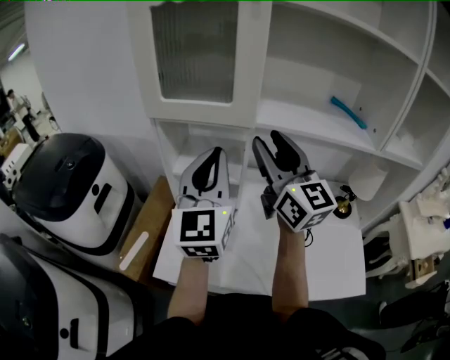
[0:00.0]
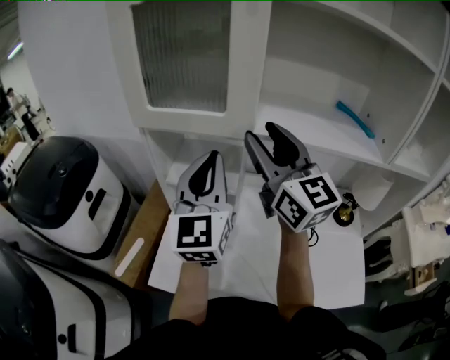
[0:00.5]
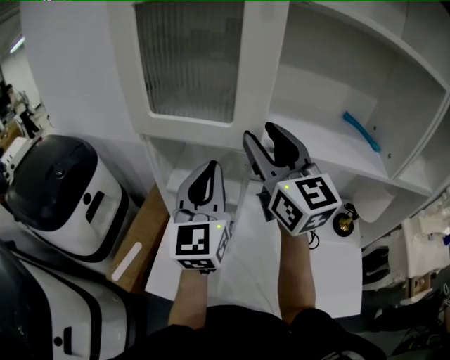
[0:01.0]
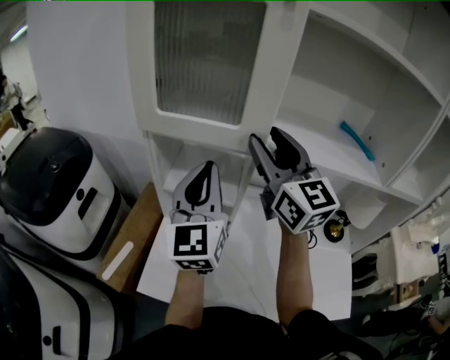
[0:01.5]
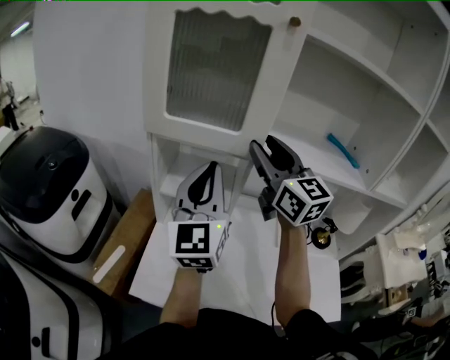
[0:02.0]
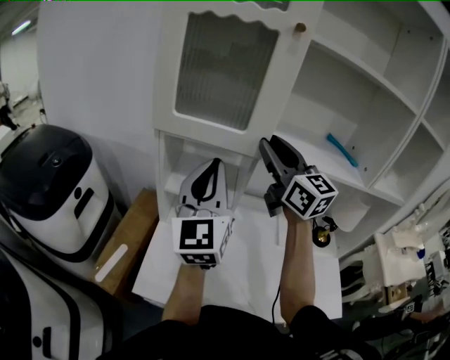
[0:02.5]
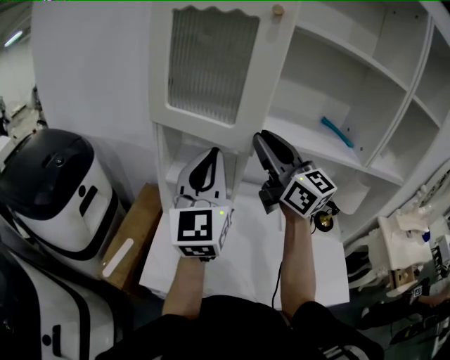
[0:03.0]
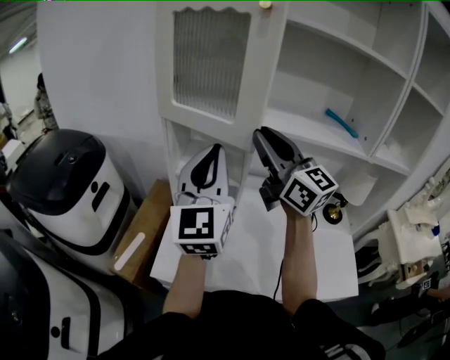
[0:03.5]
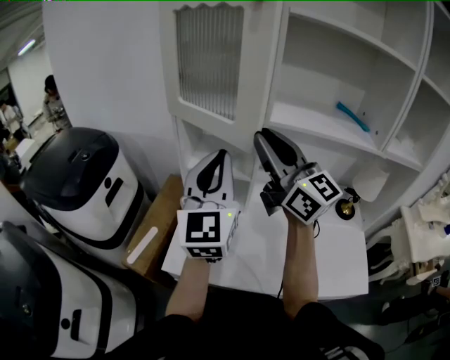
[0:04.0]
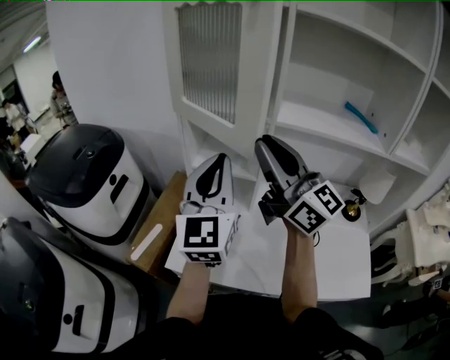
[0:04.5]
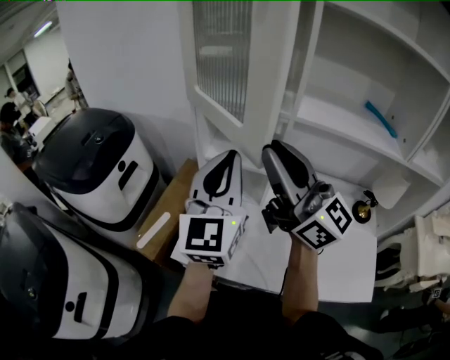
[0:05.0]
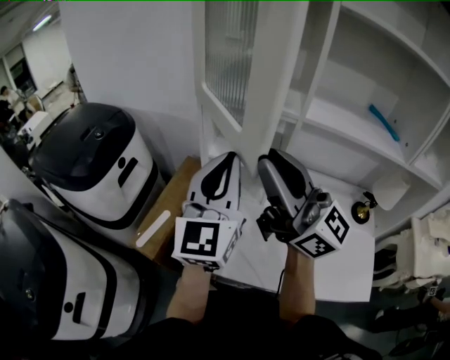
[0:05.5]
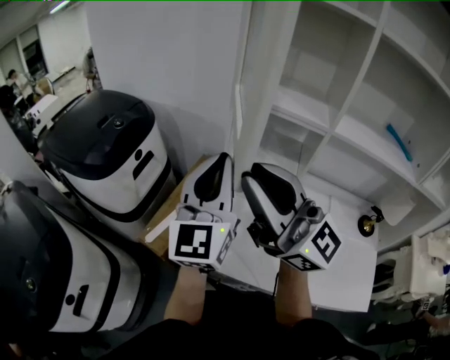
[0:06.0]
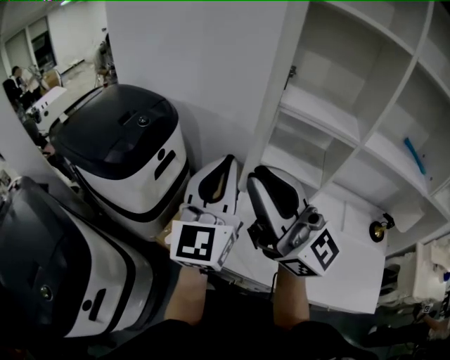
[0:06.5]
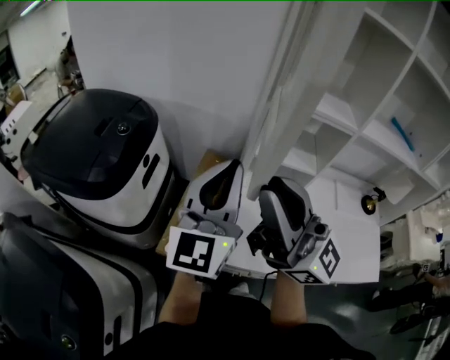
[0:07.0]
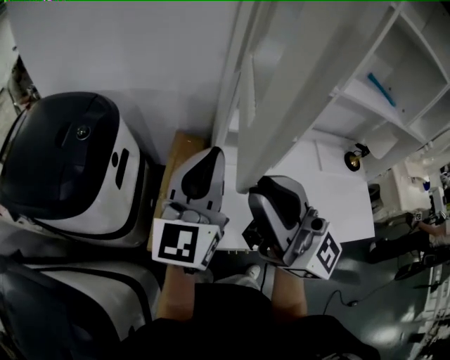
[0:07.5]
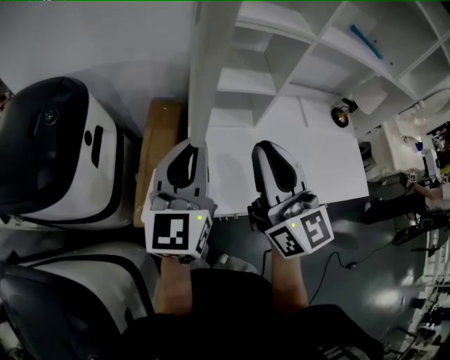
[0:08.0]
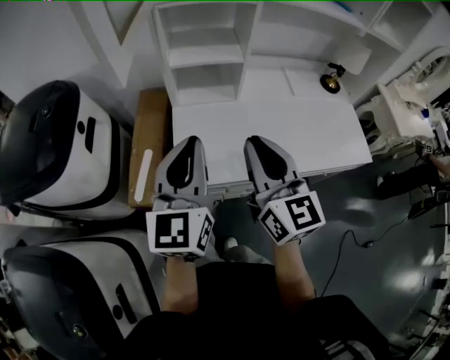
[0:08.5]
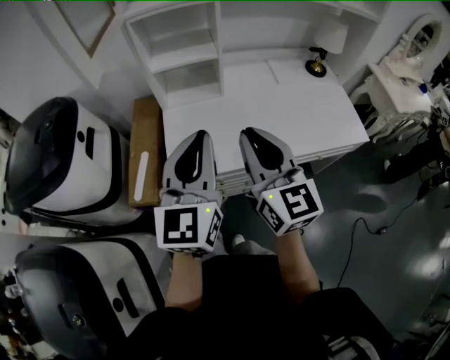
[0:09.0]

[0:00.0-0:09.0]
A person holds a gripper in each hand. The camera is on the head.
0:00.0 to 0:02.0: The right gripper travels forward by roughly 10 cm.
0:02.0 to 0:04.5: The left gripper is displaced backward by roughly 10 cm, while the right gripper goes some 15 cm backward and to the left, swivels some 30 degrees, and closes.
0:04.5 to 0:07.0: Both grippers travel together to the left, approximately 25 cm.
0:07.0 to 0:09.0: The left gripper moves about 30 cm; the right gripper changes place by roughly 30 cm, and angles its fingers downward, by roughly 30 degrees.

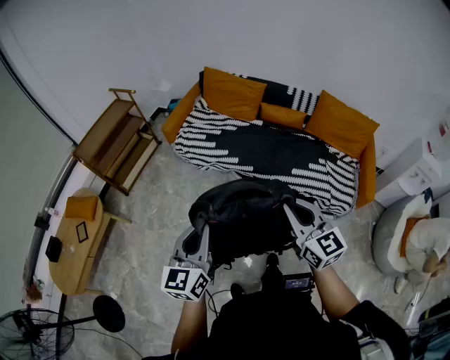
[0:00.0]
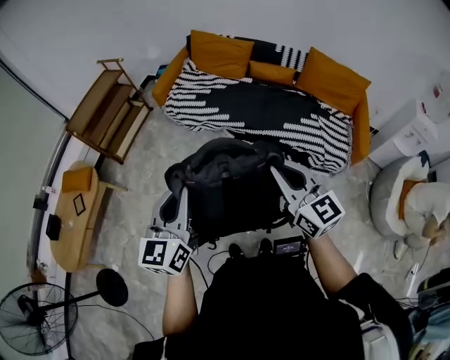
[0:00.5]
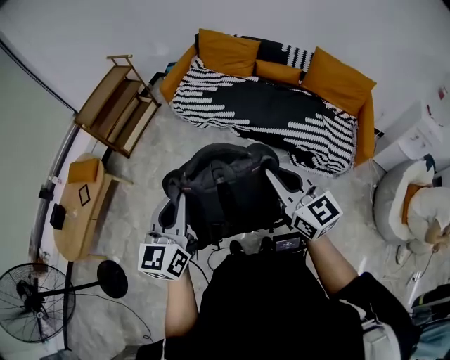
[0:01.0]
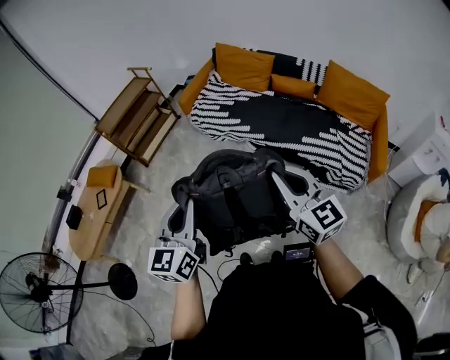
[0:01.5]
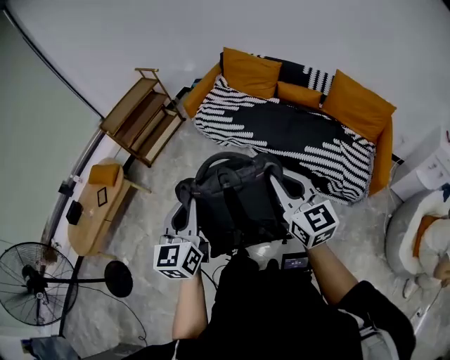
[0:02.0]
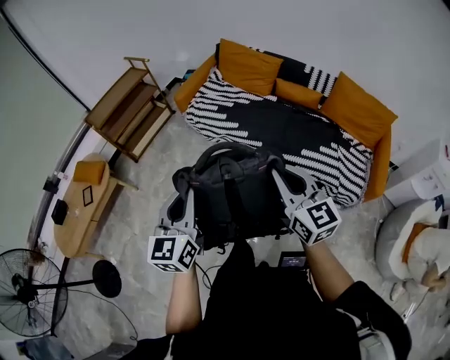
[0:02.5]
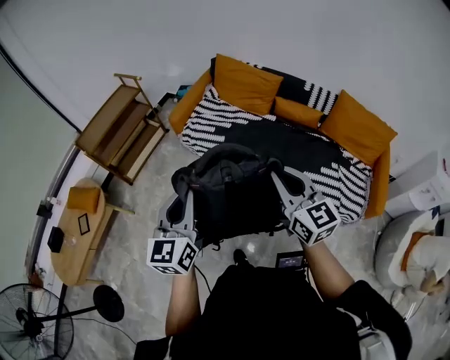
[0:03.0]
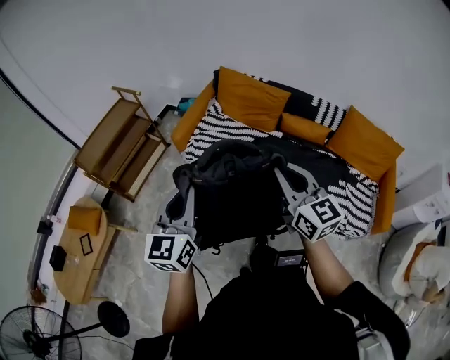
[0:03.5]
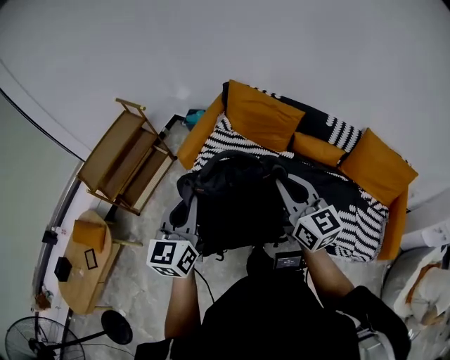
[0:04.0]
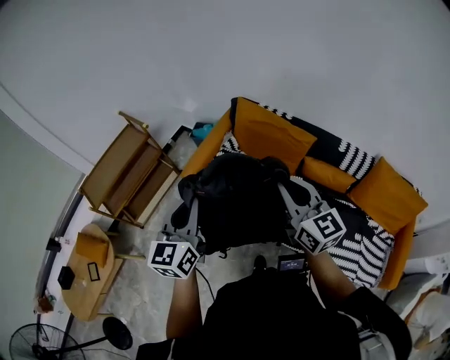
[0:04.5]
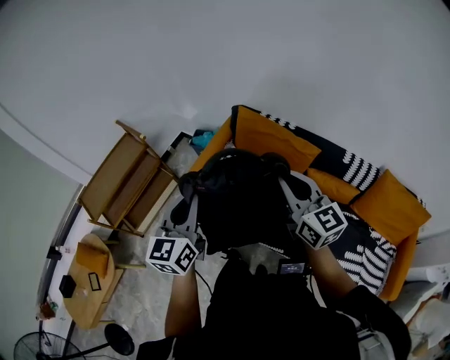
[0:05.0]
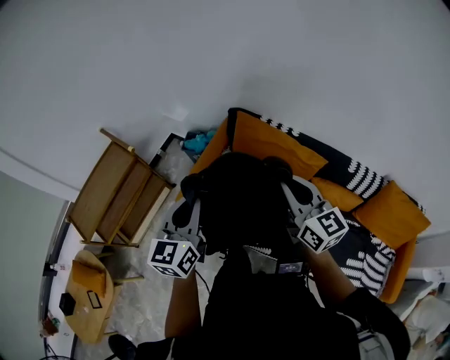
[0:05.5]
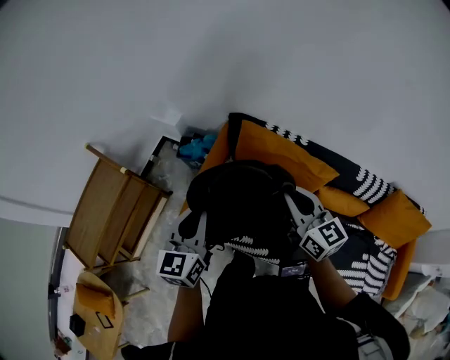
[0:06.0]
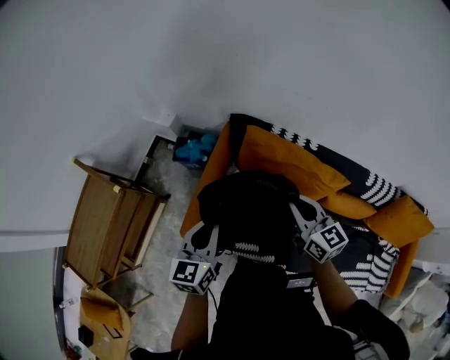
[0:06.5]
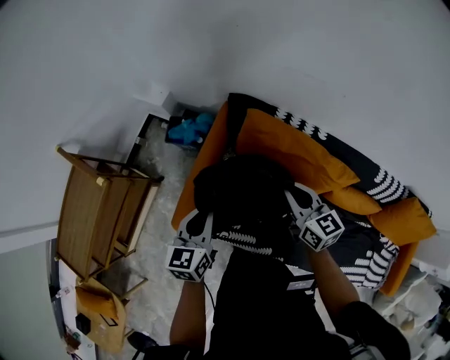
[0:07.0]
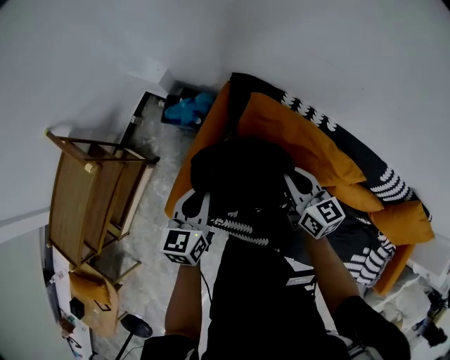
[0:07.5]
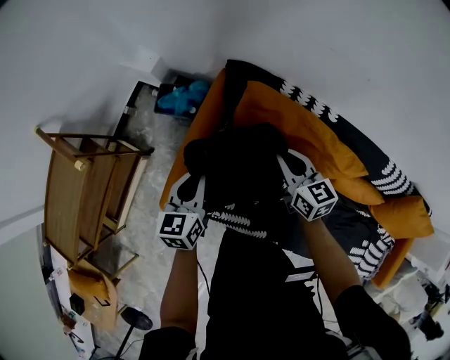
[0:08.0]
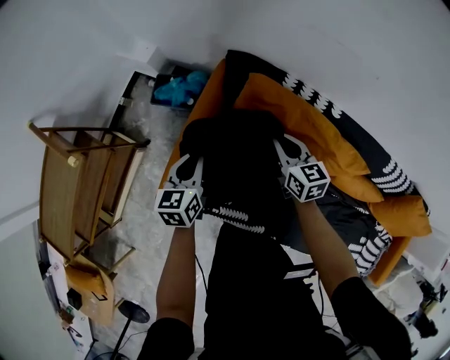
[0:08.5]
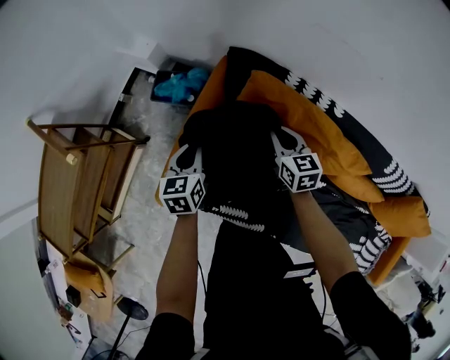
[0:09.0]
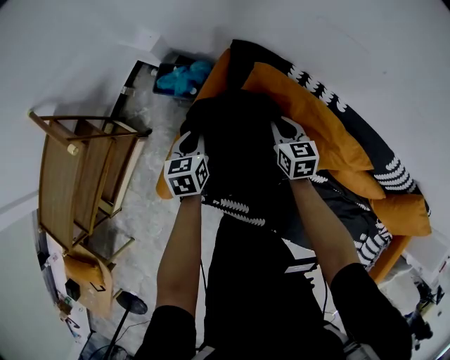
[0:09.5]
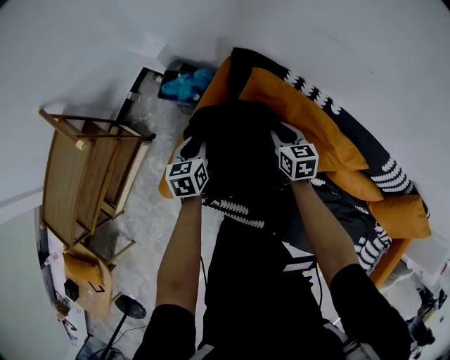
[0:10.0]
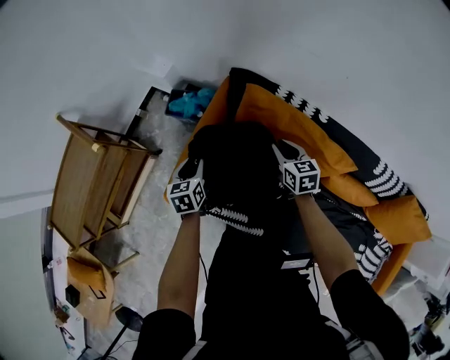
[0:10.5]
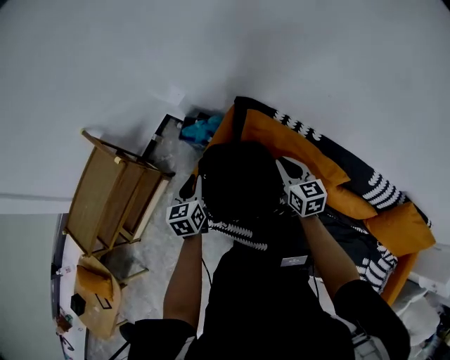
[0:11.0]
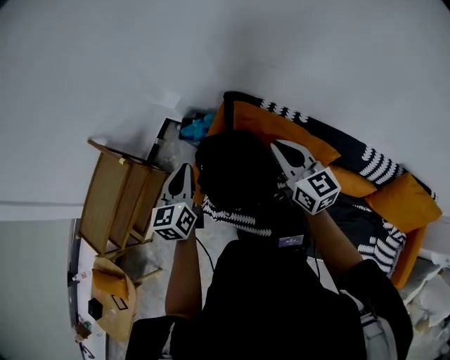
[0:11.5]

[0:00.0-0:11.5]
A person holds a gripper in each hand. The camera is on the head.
0:00.0 to 0:02.0: The left gripper shifts roughly 5 cm backward.
0:02.0 to 0:04.0: Both grippers are carried forward, about 50 cm.
0:04.0 to 0:06.0: Both grippers are carried forward, some 40 cm.
0:06.0 to 0:07.5: Both grippers move downward and forward, approximately 25 cm.
0:07.5 to 0:09.5: Both grippers travel together downward and forward, about 15 cm. The right gripper swivels some 20 degrees.
0:09.5 to 0:11.5: Both grippers move upward, about 35 cm. The left gripper swivels about 30 degrees, and opens and closes again; the right gripper tilts its fingers about 30 degrees upward.

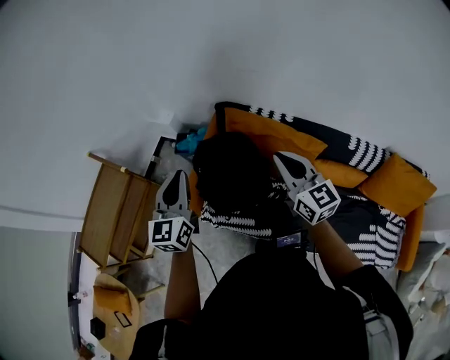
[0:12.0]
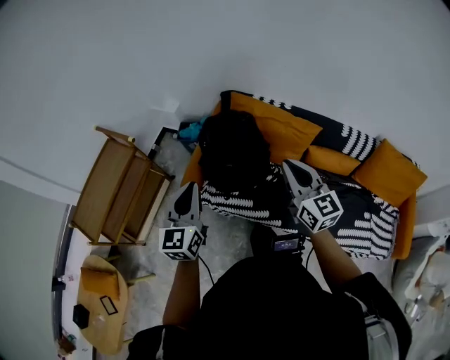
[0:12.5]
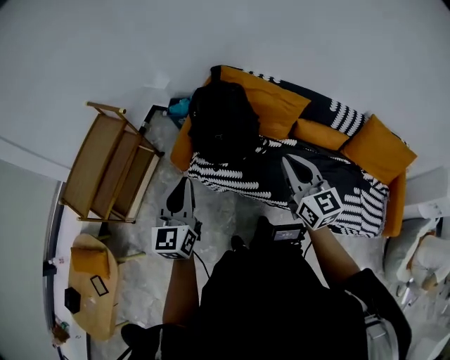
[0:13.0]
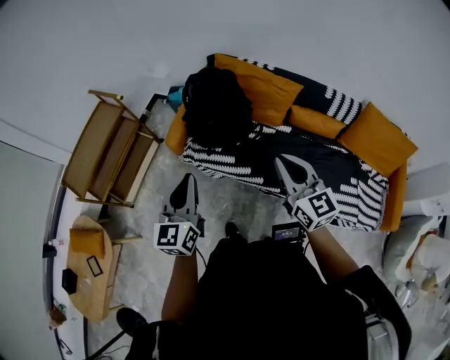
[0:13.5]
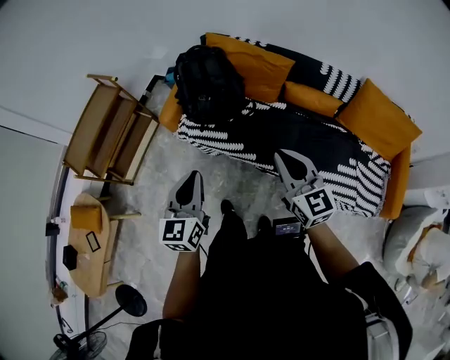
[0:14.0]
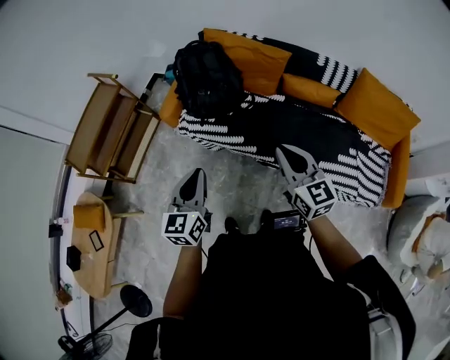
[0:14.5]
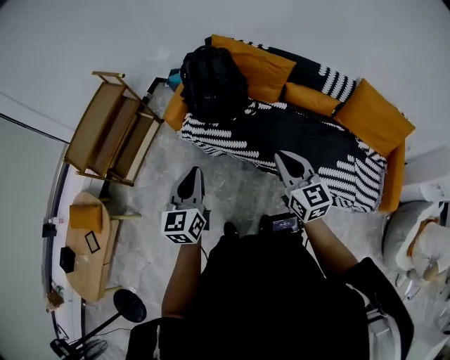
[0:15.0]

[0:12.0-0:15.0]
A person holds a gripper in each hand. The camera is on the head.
0:12.0 to 0:13.5: Both grippers move backward, roughly 35 cm.
0:13.5 to 0:15.0: The two grippers go some 10 cm backward.

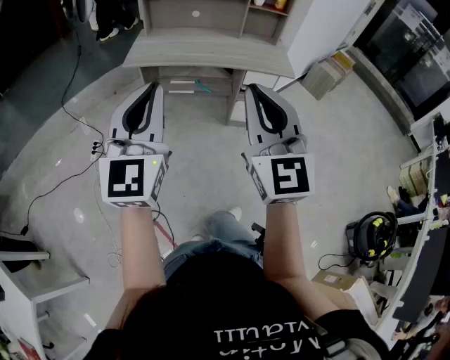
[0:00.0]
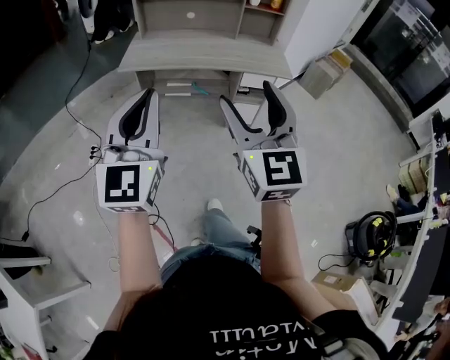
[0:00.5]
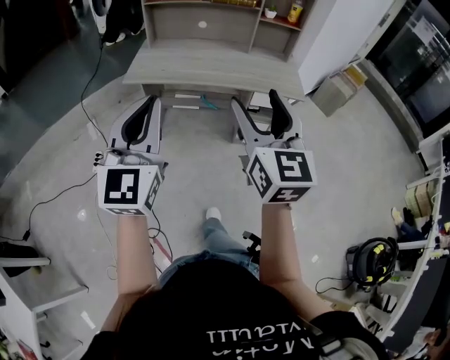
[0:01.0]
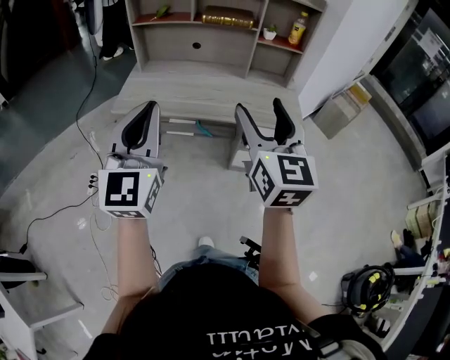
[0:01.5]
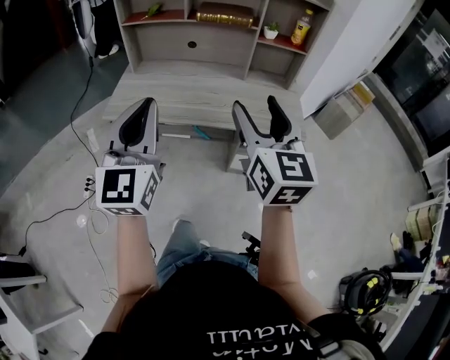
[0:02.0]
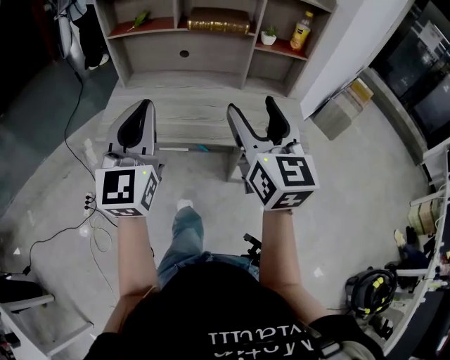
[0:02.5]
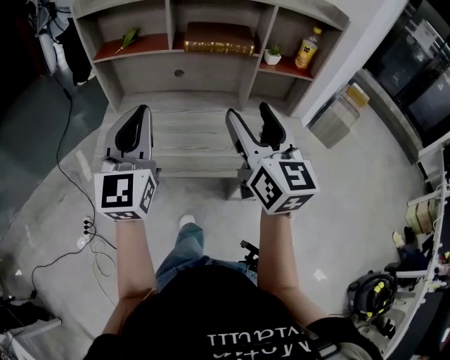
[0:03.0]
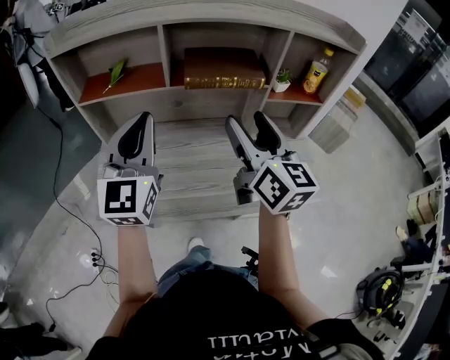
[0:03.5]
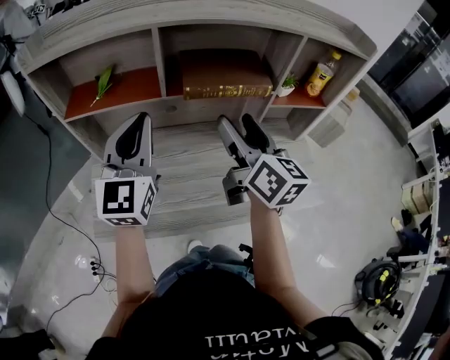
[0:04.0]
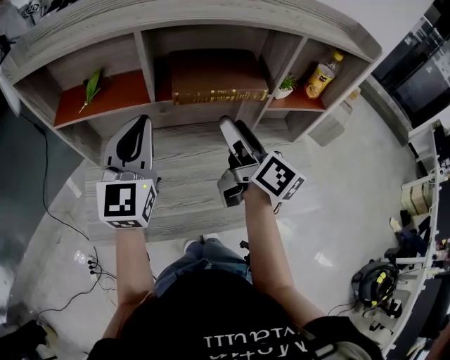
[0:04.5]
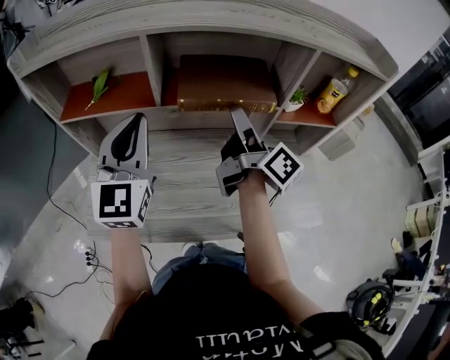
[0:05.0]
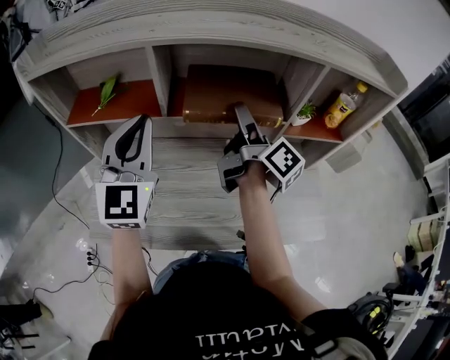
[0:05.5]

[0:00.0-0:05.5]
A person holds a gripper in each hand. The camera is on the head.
0:00.0 to 0:02.0: Both grippers travel together forward, about 40 cm. The right gripper rotates roughly 20 degrees, and opens.
0:02.0 to 0:03.5: Both grippers move forward, some 35 cm.
0:03.5 to 0:05.5: The right gripper travels forward by some 20 cm, and twists approximately 50 degrees clockwise, seen from behind. Meanwhile the left gripper travels forward by some 10 cm.
